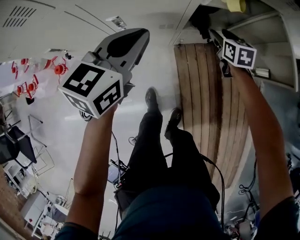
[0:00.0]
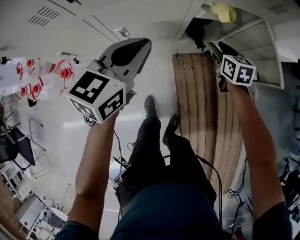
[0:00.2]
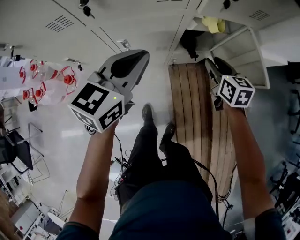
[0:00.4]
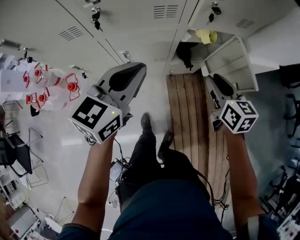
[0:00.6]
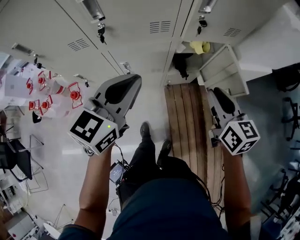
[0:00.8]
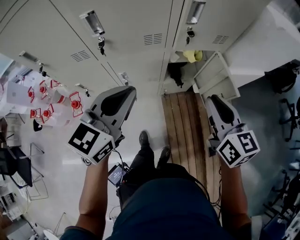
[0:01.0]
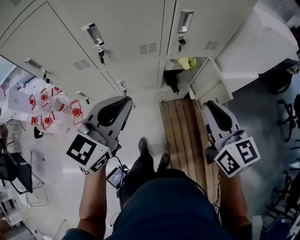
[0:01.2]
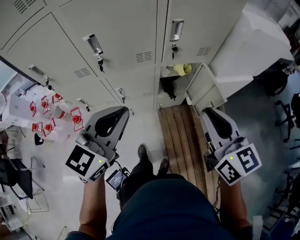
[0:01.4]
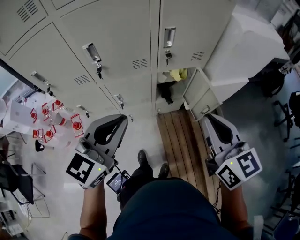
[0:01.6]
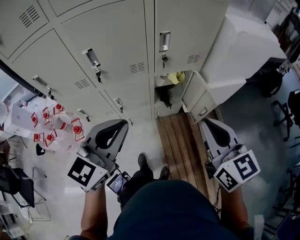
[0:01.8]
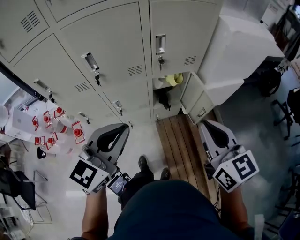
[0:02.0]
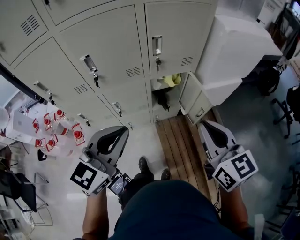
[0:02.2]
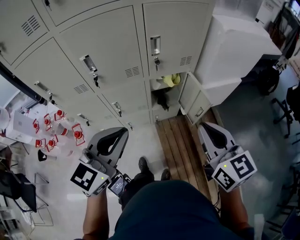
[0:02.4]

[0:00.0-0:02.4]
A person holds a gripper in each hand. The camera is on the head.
0:00.0 to 0:01.2: The left gripper goes approximately 35 cm upward and backward. Meanwhile the right gripper is displaced upward and backward by about 60 cm, tilts its fingers approximately 30 degrees upward, and closes its fingers.
0:01.2 to 0:02.4: The right gripper goes roughly 15 cm backward, upward and to the right, while the left gripper is displaced backward, to the right and upward by approximately 10 cm.

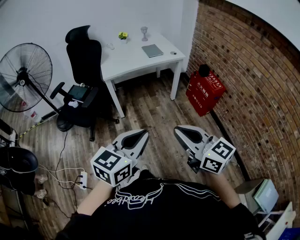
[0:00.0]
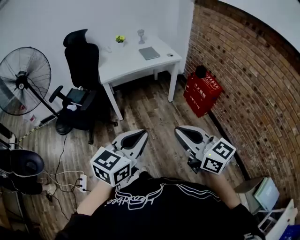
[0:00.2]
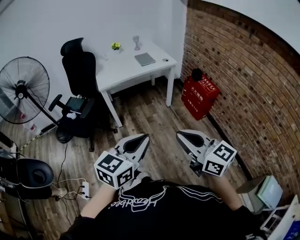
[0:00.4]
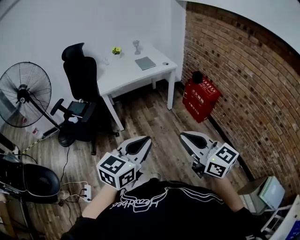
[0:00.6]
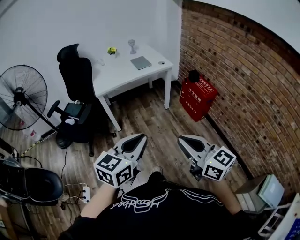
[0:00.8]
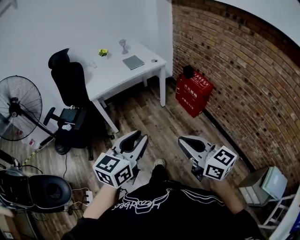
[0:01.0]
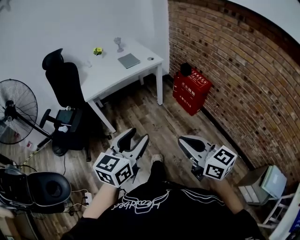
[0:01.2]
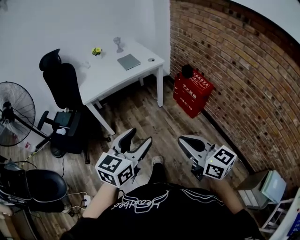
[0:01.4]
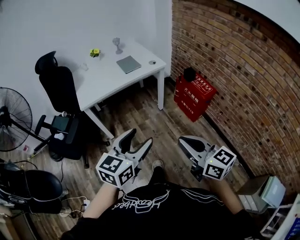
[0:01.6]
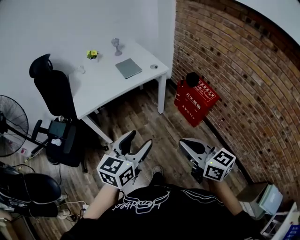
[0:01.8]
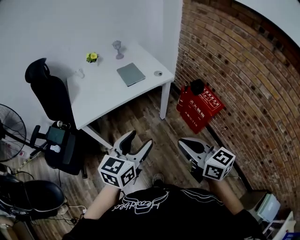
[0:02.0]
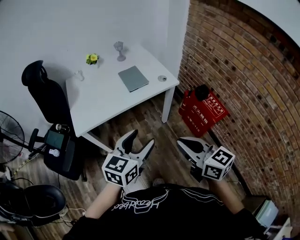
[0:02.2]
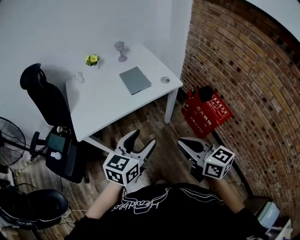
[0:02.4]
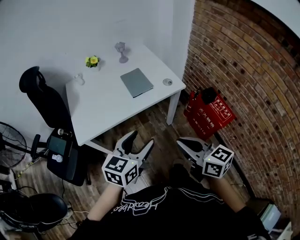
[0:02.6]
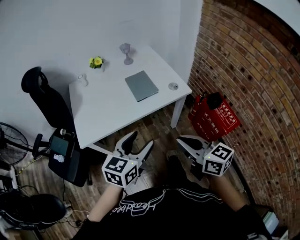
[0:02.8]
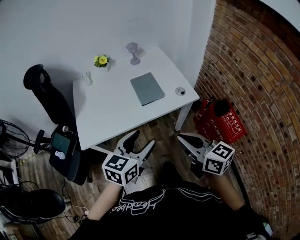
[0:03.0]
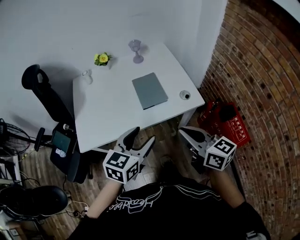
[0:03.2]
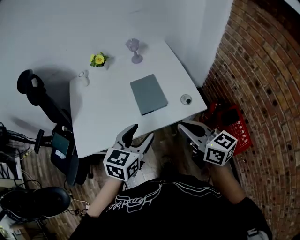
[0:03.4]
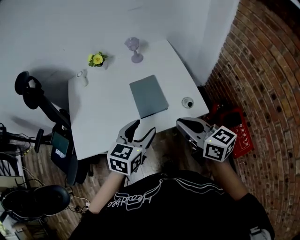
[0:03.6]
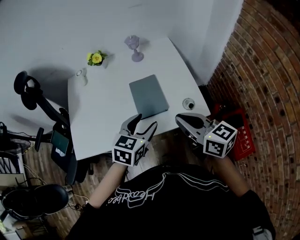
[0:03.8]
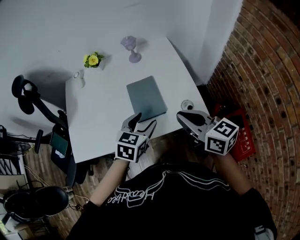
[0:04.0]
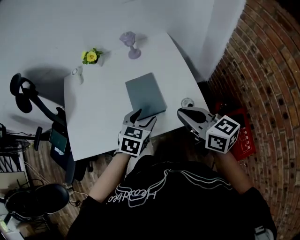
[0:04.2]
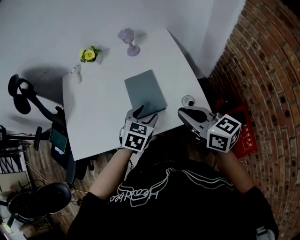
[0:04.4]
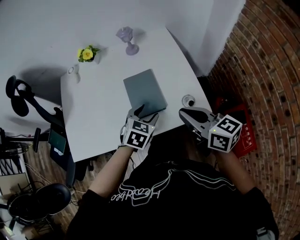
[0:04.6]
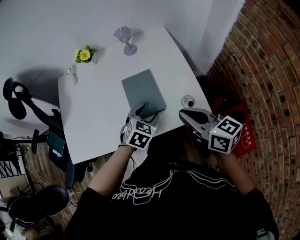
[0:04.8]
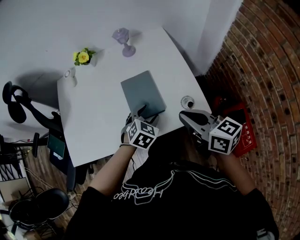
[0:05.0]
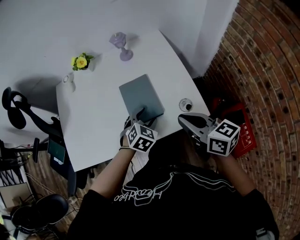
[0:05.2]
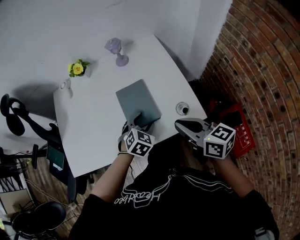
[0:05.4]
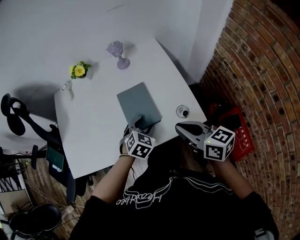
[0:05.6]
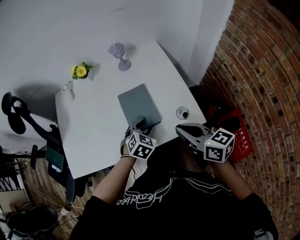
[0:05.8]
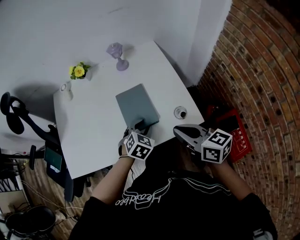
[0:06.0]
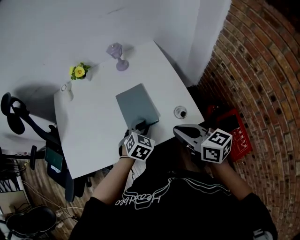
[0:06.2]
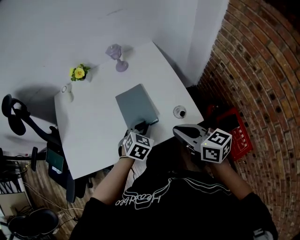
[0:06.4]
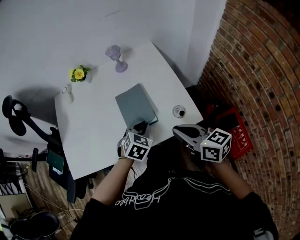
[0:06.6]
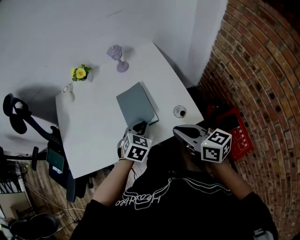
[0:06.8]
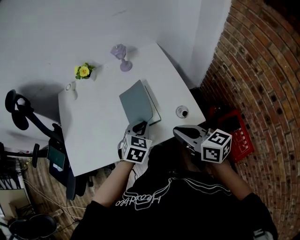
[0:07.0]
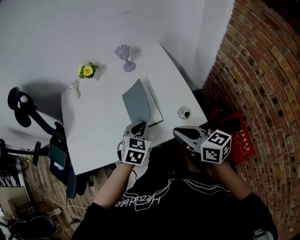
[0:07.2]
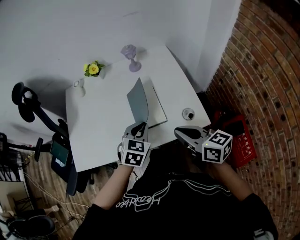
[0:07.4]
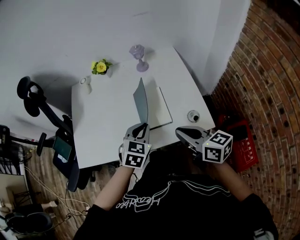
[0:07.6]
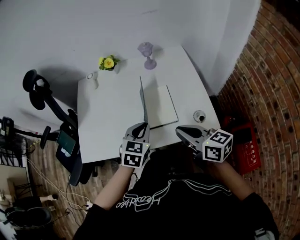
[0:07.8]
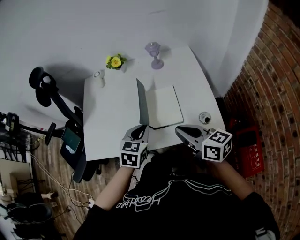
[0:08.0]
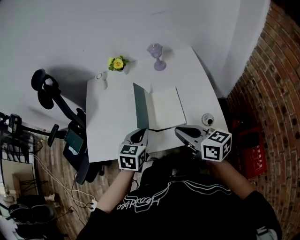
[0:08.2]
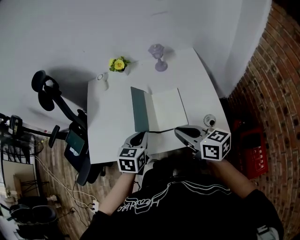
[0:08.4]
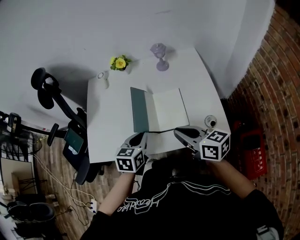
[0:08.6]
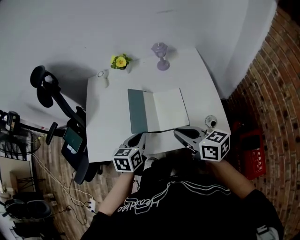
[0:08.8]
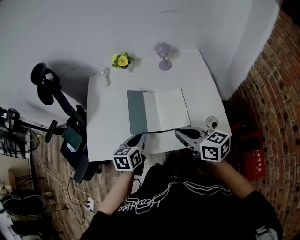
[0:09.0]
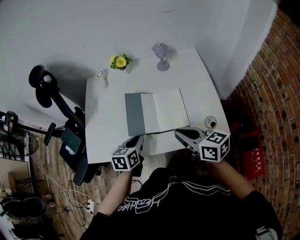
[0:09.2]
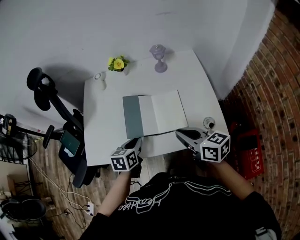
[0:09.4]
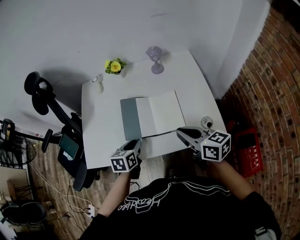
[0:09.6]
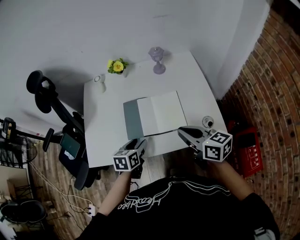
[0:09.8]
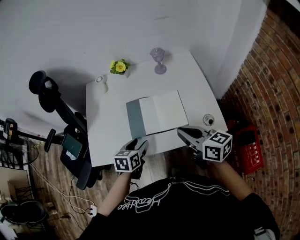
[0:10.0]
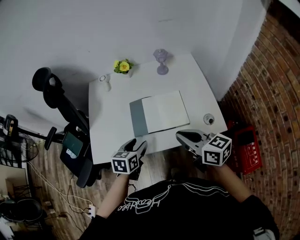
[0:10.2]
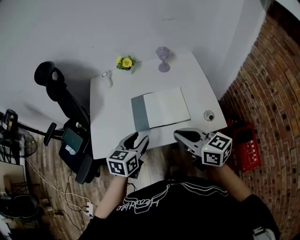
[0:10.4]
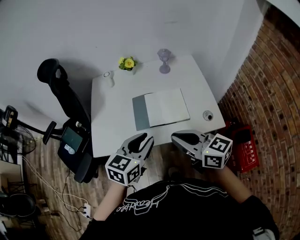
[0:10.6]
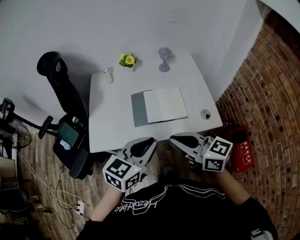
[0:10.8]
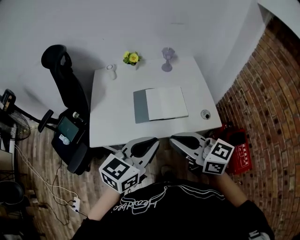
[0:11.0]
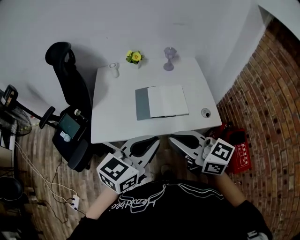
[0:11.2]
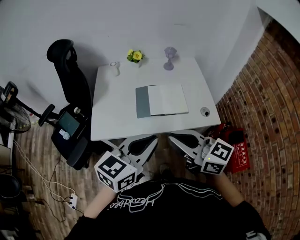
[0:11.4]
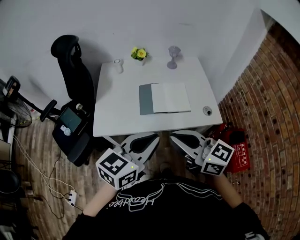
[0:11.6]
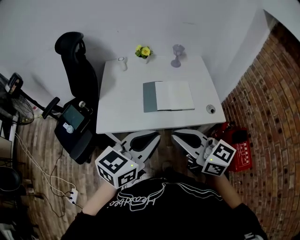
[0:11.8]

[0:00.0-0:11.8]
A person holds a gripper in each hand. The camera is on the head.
0:00.0 to 0:01.4: The left gripper moves forward and to the right, some 15 cm, and opens up; the right gripper travels to the right and forward by roughly 10 cm.
0:01.4 to 0:03.0: Both grippers are carried forward, about 50 cm.
0:03.0 to 0:04.4: The right gripper shifts roughly 25 cm forward, while the left gripper moves forward and downward, about 30 cm, and turns by approximately 30 degrees.
0:04.4 to 0:06.0: The left gripper changes place by approximately 5 cm, and closes up.
0:06.0 to 0:07.4: The left gripper heads upward, covering roughly 10 cm, and closes up.
0:07.4 to 0:08.8: The right gripper goes about 10 cm to the left and forward; the left gripper heads to the left, covering about 15 cm, and changes its angle by some 30 degrees.
0:08.8 to 0:10.4: The right gripper travels upward and to the left by approximately 10 cm. Meanwhile the left gripper travels upward by roughly 5 cm, and opens.
0:10.4 to 0:11.8: The left gripper moves backward and upward, roughly 20 cm, swivels some 20 degrees, and closes its fingers. Meanwhile the right gripper travels backward, upward and to the left by roughly 15 cm.

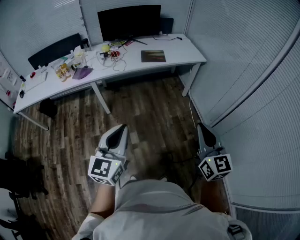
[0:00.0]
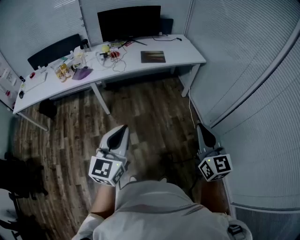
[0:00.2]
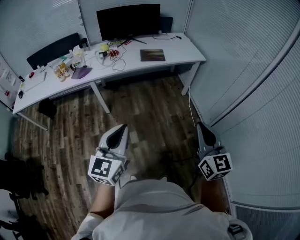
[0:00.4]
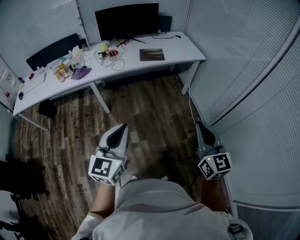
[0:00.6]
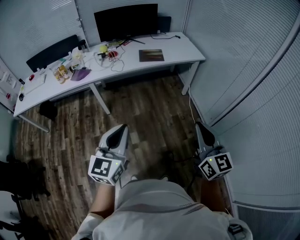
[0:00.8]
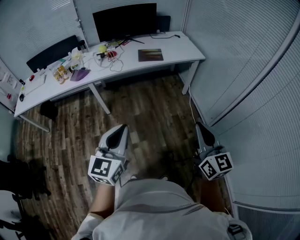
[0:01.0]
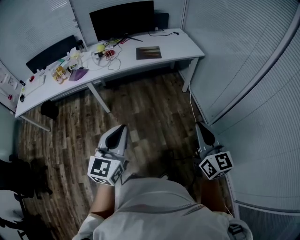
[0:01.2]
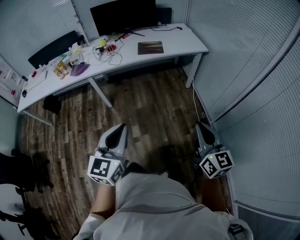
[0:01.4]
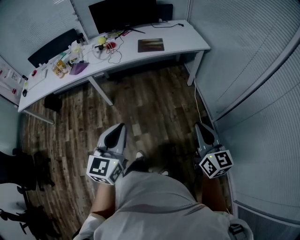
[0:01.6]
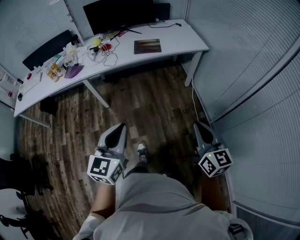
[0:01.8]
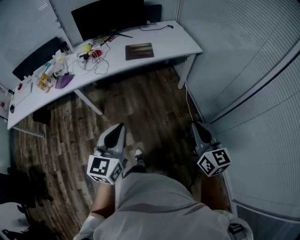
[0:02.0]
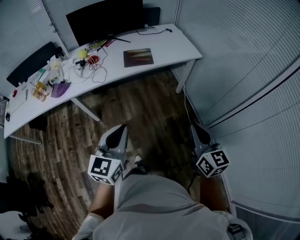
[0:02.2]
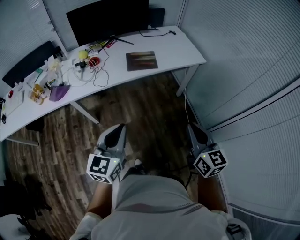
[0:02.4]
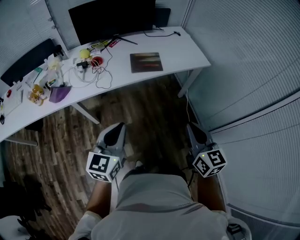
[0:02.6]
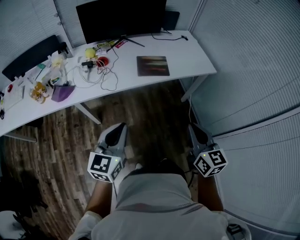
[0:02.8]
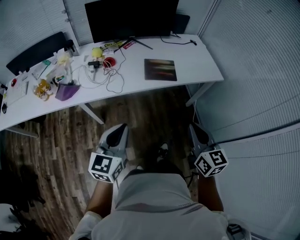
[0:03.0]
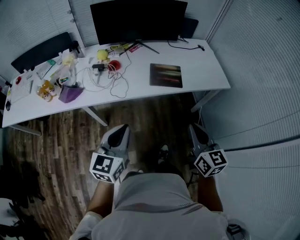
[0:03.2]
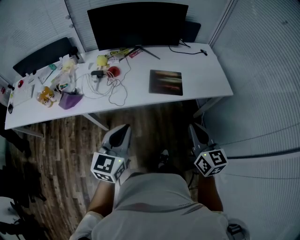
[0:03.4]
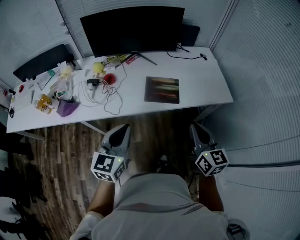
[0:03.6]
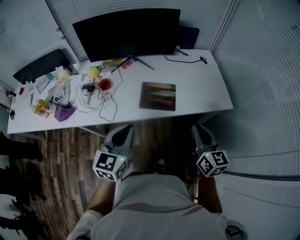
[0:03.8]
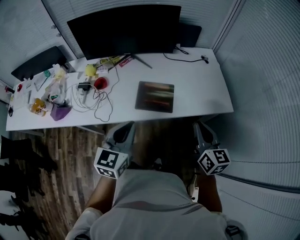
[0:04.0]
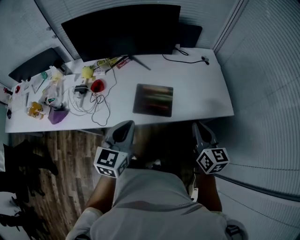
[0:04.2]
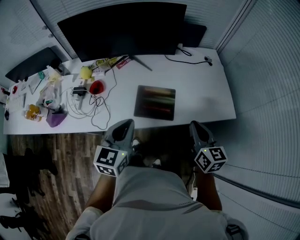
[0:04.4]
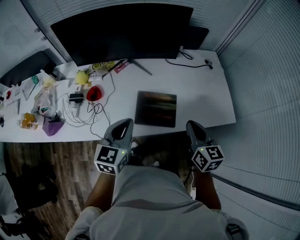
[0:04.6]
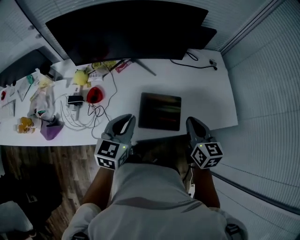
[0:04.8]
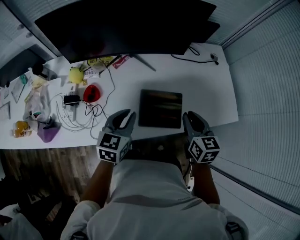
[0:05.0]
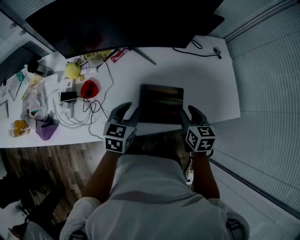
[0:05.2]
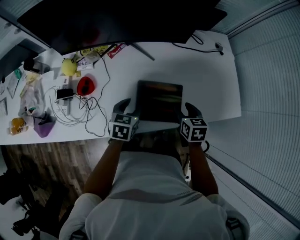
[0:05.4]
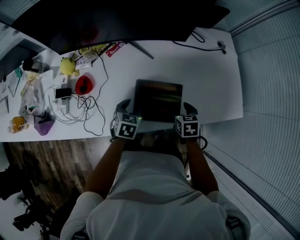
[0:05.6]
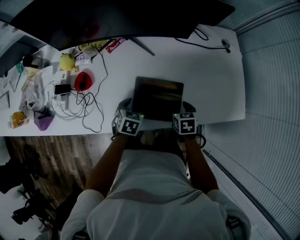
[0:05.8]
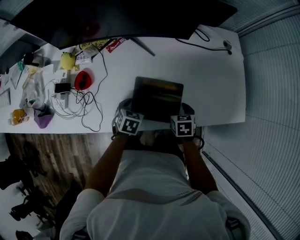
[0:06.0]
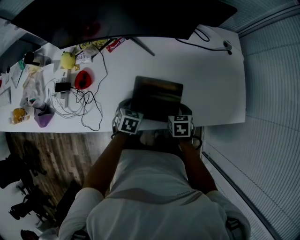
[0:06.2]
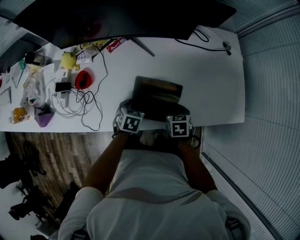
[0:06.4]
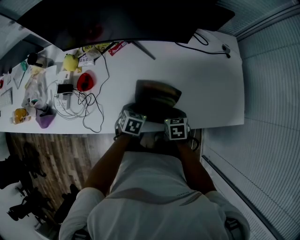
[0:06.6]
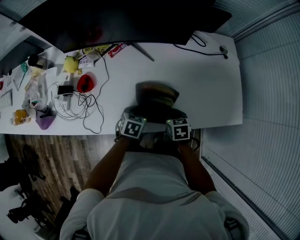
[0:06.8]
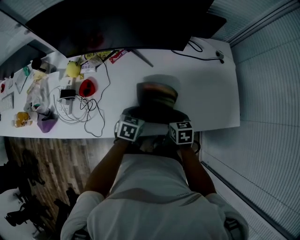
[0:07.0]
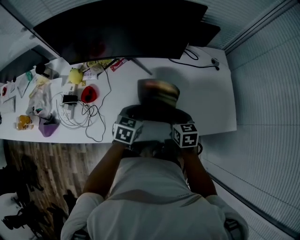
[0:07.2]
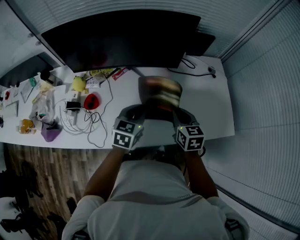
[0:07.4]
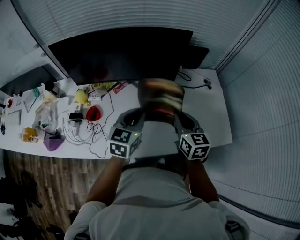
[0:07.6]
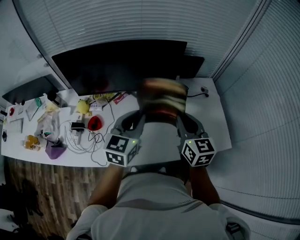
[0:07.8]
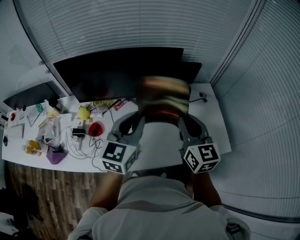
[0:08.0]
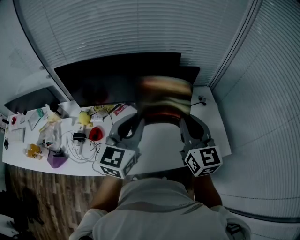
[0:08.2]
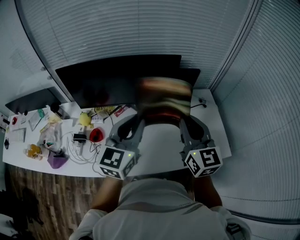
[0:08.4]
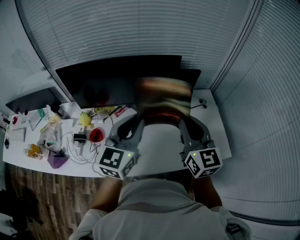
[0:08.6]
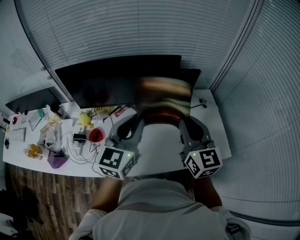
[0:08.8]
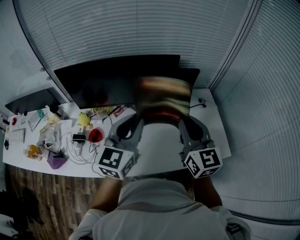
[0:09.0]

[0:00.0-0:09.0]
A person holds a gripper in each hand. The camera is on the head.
0:00.0 to 0:01.6: The right gripper moves to the right, downward and forward, about 15 cm; the left gripper goes about 10 cm to the right.
0:01.6 to 0:03.0: The pair of grippers is taken forward and to the left, approximately 40 cm.
0:03.0 to 0:04.4: The right gripper goes roughly 40 cm forward; the left gripper goes approximately 40 cm forward and to the right.
0:04.4 to 0:06.0: Both grippers travel together downward and forward, roughly 35 cm. The left gripper tilts its fingers roughly 40 degrees downward, and opens its fingers, while the right gripper tilts its fingers approximately 40 degrees downward, and opens its fingers.
0:06.0 to 0:07.6: Both grippers travel together upward, roughly 30 cm. The left gripper tilts its fingers some 40 degrees upward, and closes its fingers, while the right gripper tilts its fingers approximately 40 degrees upward, and closes up.
0:07.6 to 0:09.0: The two grippers go approximately 15 cm upward. The left gripper swivels roughly 20 degrees, while the right gripper rotates some 20 degrees.
